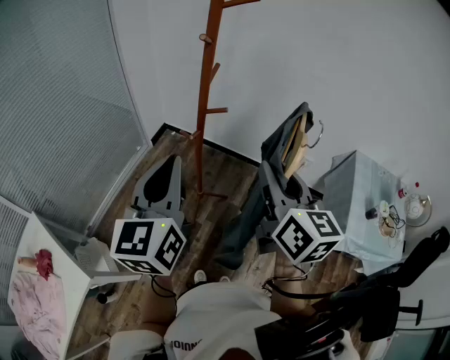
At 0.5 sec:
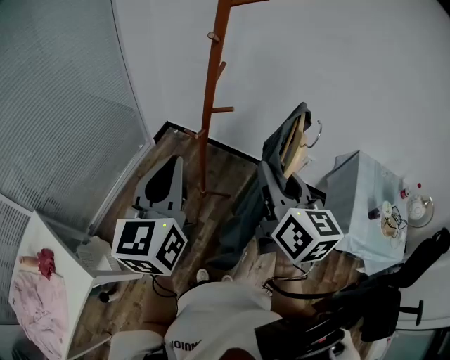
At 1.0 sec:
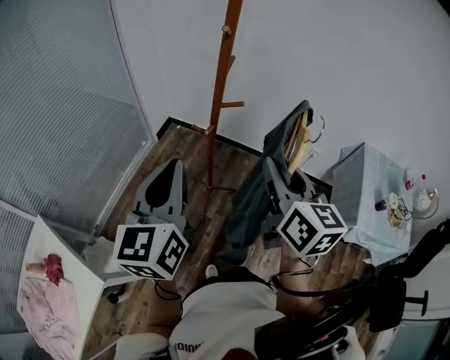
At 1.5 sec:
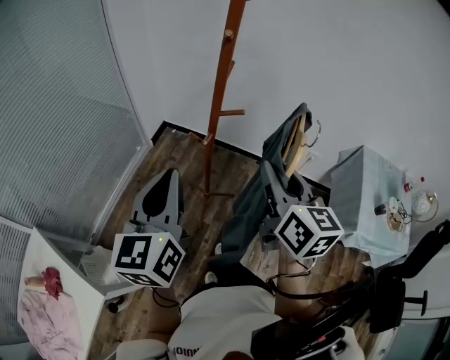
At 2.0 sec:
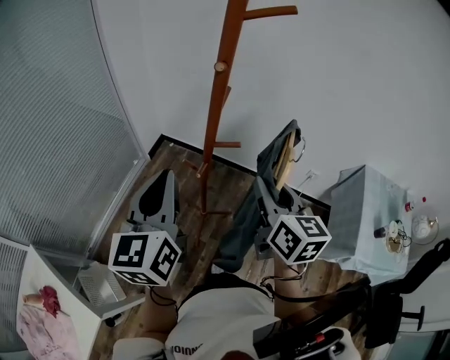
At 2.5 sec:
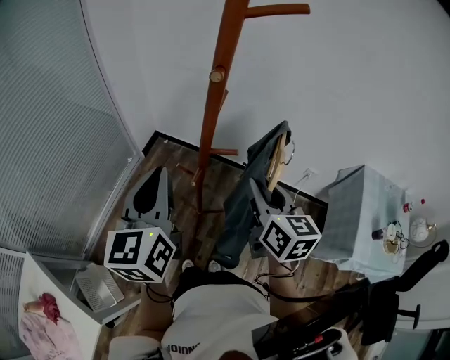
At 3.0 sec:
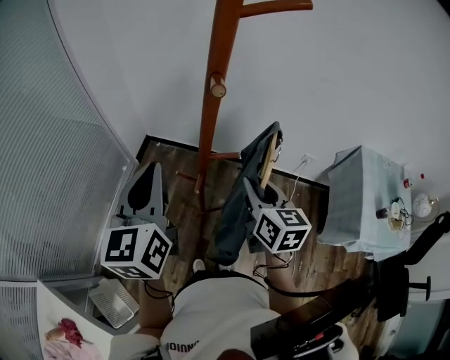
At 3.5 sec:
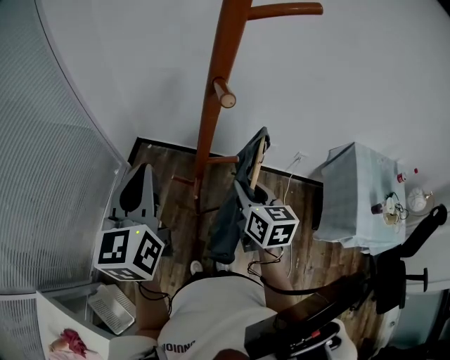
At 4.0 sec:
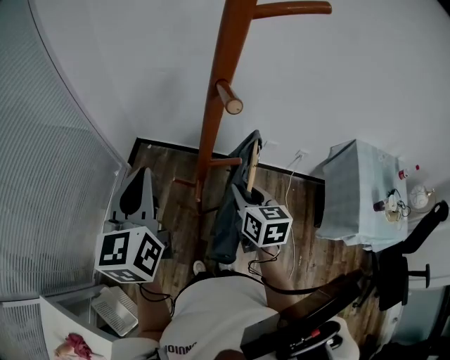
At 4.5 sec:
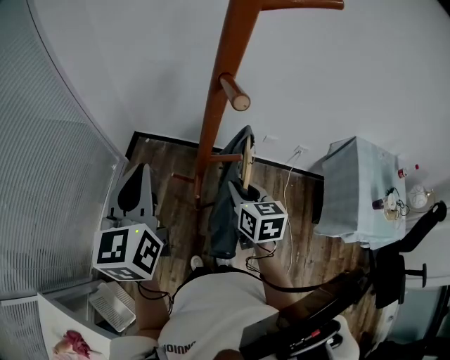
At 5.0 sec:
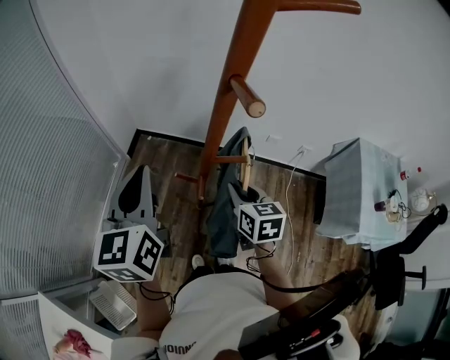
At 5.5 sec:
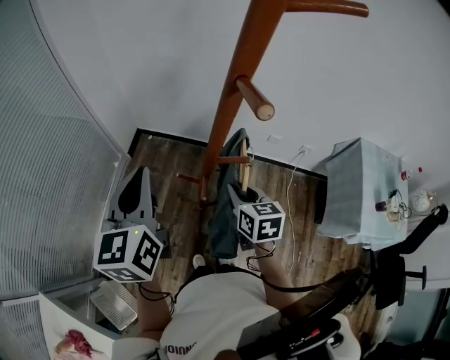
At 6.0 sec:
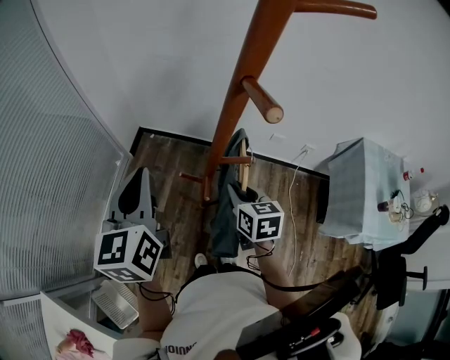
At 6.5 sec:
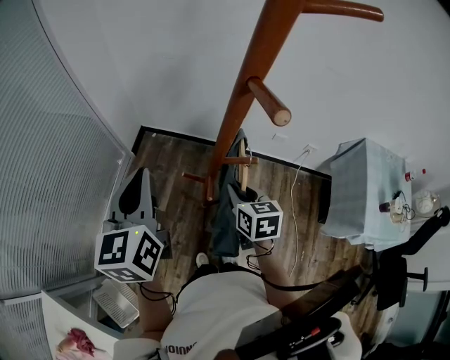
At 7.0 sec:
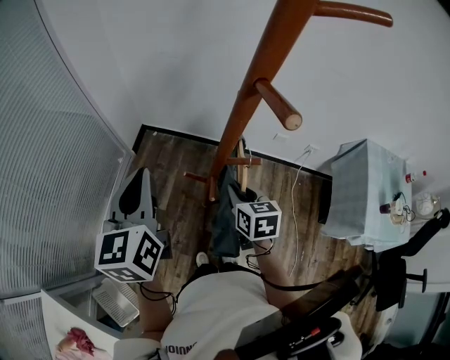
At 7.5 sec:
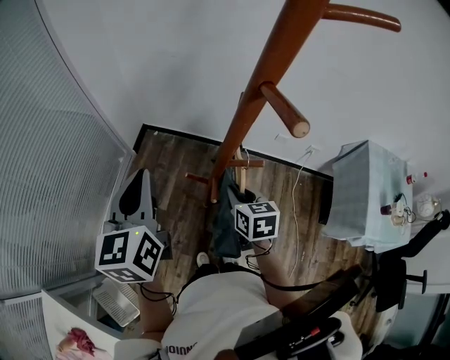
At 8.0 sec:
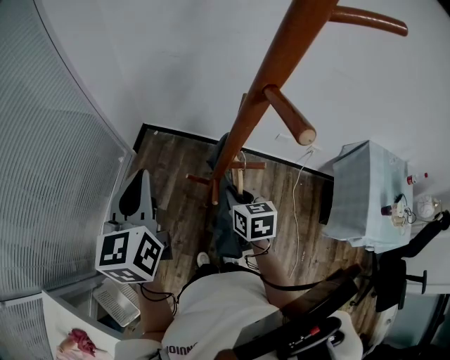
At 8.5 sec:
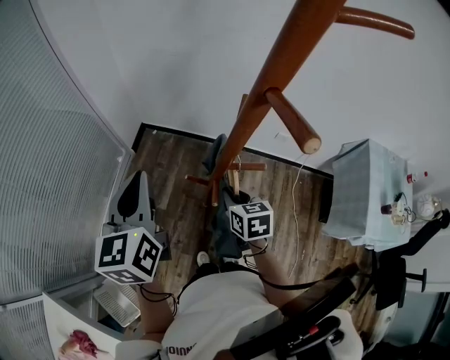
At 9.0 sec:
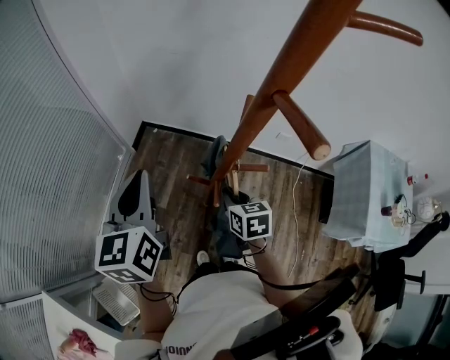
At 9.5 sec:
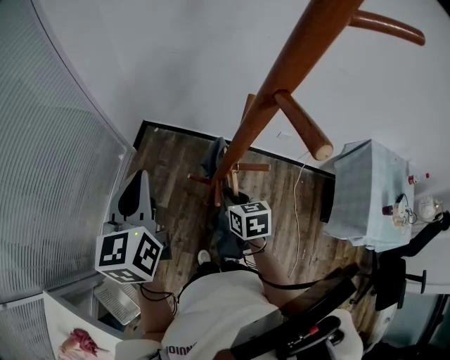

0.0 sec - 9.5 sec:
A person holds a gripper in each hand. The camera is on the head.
0.0 sec - 2.0 sec: The left gripper travels forward by some 10 cm; the right gripper goes about 15 cm forward and downward.
2.0 sec - 4.0 sec: The left gripper goes about 10 cm forward; the right gripper goes approximately 15 cm downward and forward.
4.0 sec - 5.5 sec: There are only small adjustments of the grippers.
5.5 sec - 7.5 sec: The grippers move only a little.
7.5 sec - 9.5 sec: The grippers make only small movements.

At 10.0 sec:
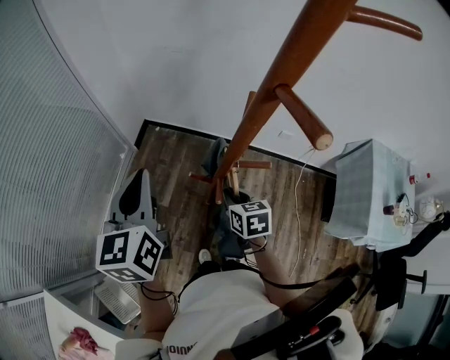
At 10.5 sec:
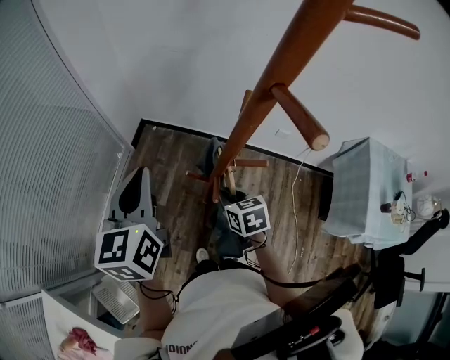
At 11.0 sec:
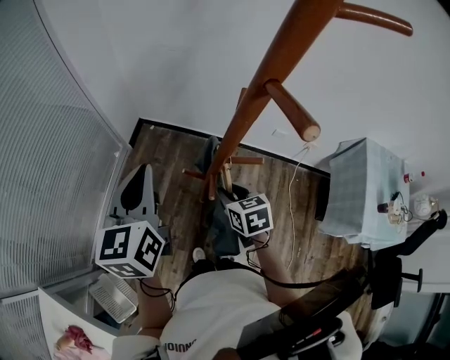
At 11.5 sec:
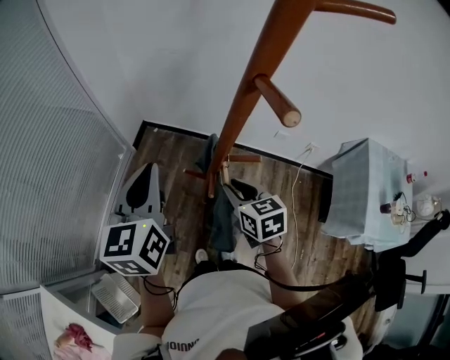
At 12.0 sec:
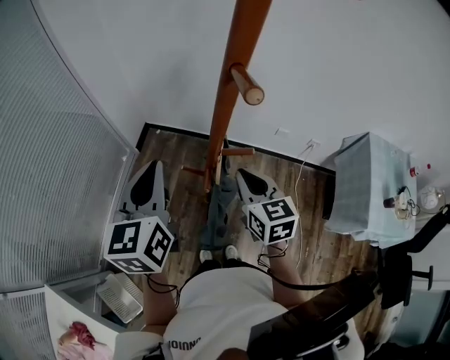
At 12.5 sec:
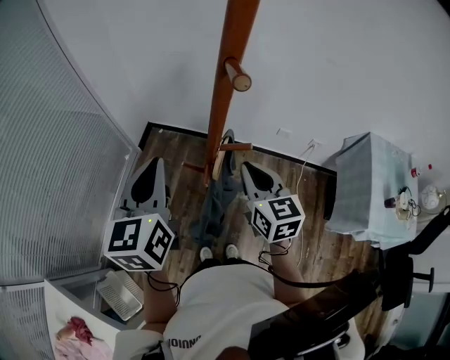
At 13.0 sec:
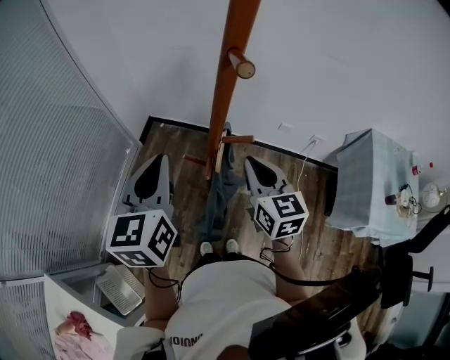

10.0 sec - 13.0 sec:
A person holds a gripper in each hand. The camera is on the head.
10.0 sec - 11.5 sec: The right gripper moves upward, about 5 cm.
11.5 sec - 13.0 sec: The right gripper shifts some 10 cm upward, rotates approximately 20 degrees, and closes its fingers.

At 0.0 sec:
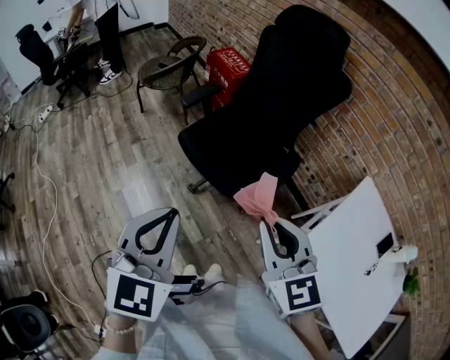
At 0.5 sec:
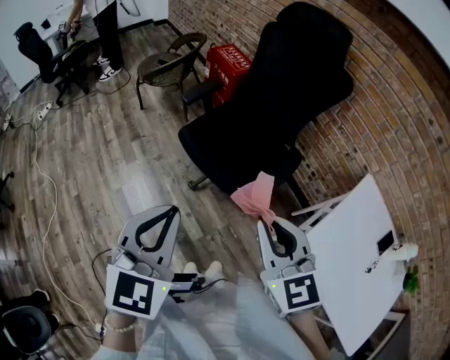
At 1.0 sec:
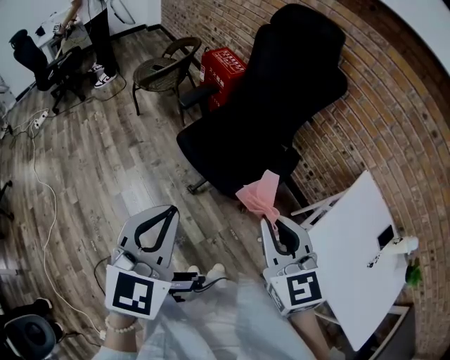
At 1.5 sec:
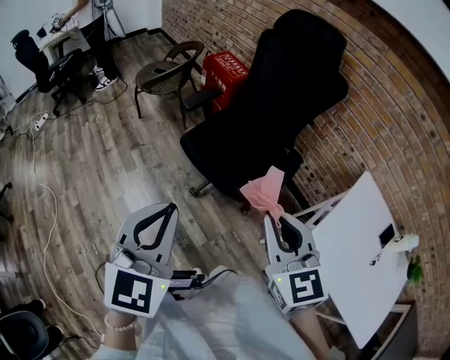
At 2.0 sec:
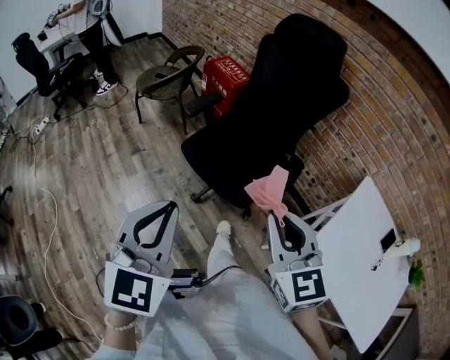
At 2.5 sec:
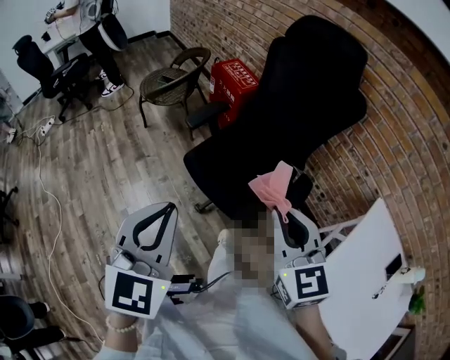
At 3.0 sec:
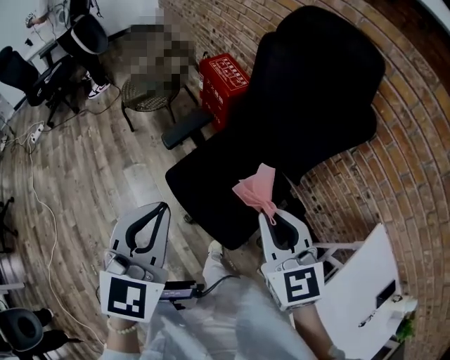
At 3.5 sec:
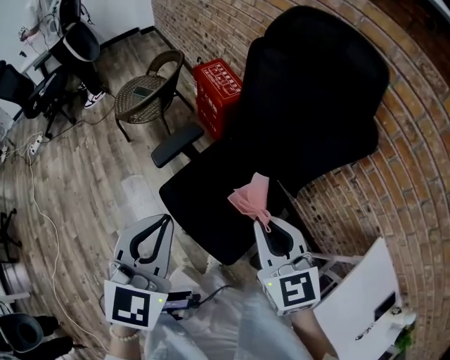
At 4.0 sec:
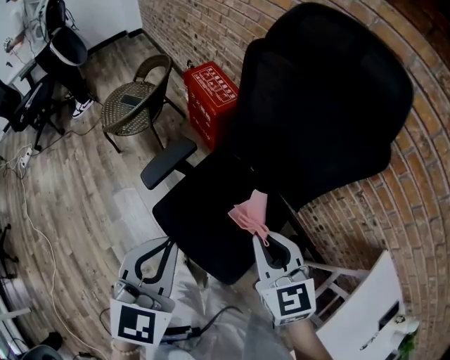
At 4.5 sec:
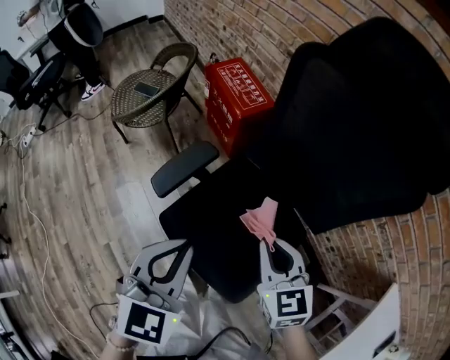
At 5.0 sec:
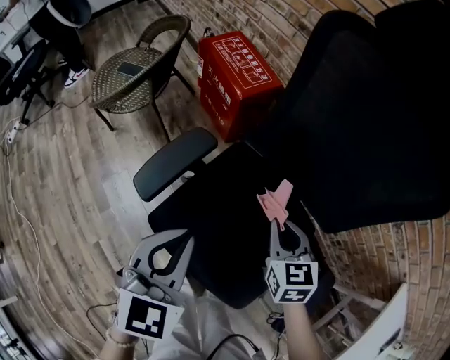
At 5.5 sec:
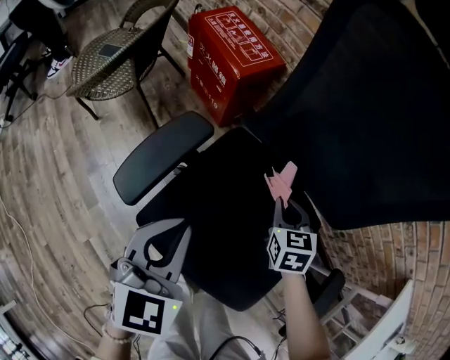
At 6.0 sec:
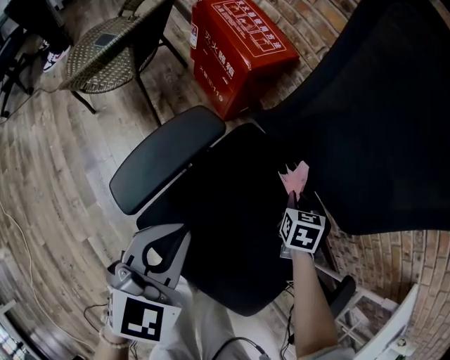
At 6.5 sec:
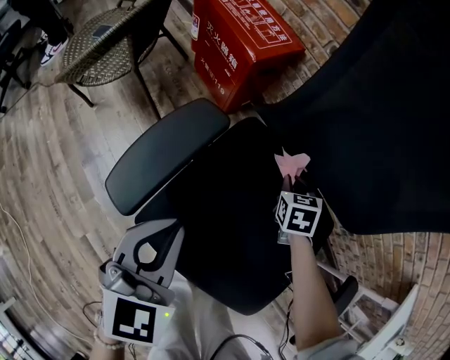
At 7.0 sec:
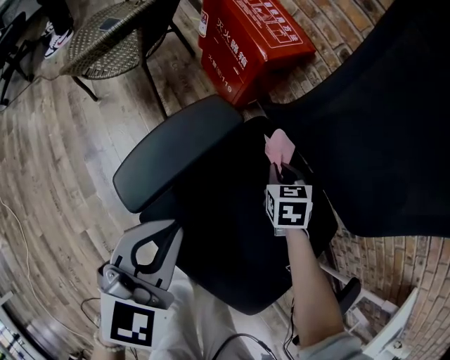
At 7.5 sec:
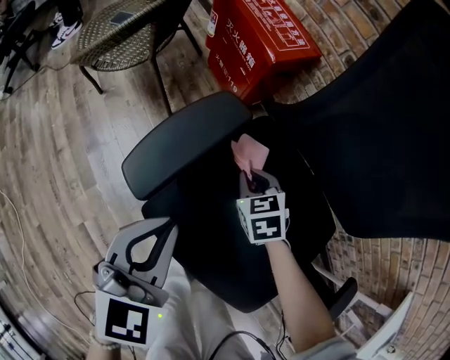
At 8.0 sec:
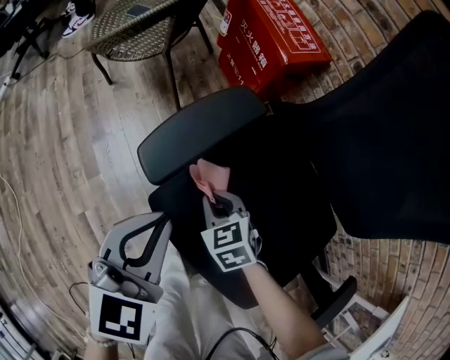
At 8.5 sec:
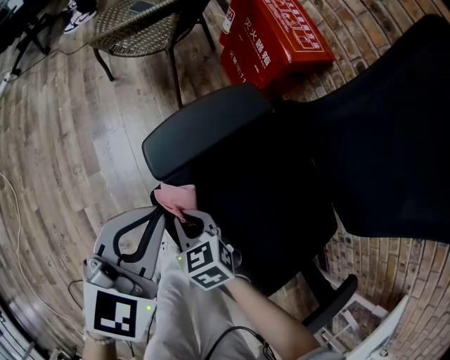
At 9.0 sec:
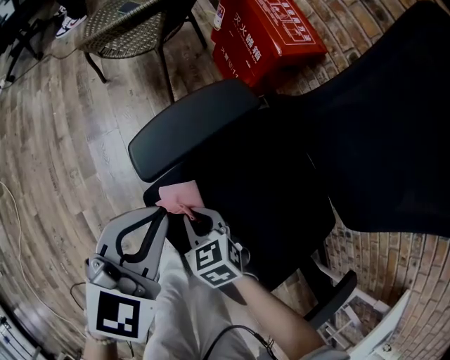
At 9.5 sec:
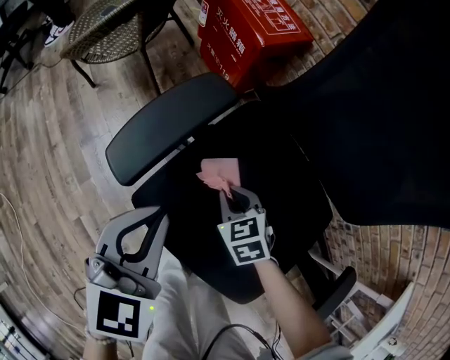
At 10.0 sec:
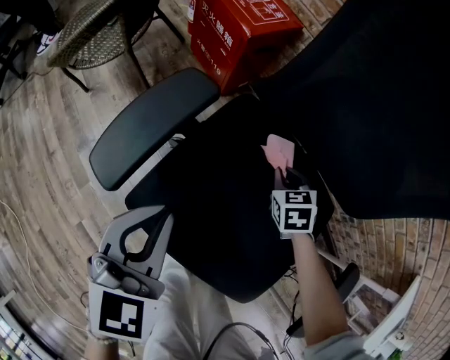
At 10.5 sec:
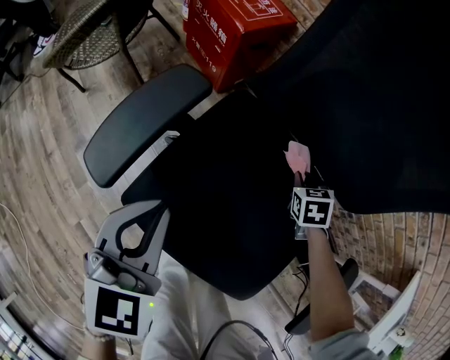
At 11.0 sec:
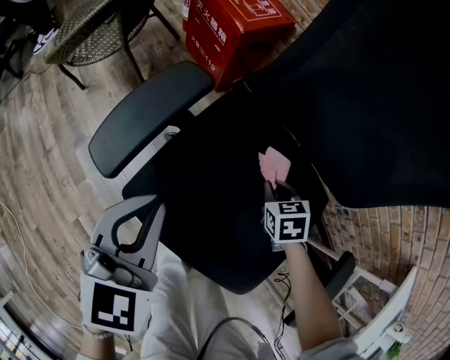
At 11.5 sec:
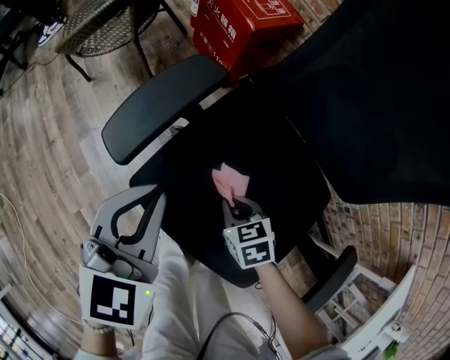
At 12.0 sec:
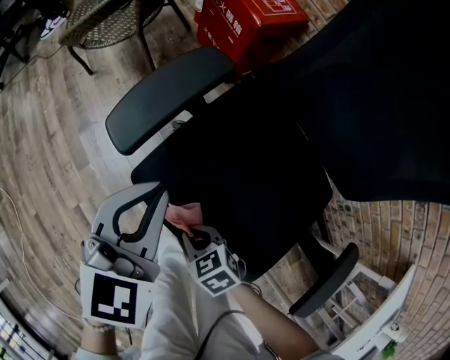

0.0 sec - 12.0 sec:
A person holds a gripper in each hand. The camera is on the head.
0.0 sec - 2.0 sec: The left gripper goes approximately 5 cm to the left.
2.0 sec - 4.0 sec: The two grippers travel together, forward, roughly 40 cm.
4.0 sec - 6.0 sec: The grippers both shift downward and forward by approximately 40 cm. The right gripper angles its fingers downward, by roughly 30 degrees.
6.0 sec - 8.0 sec: The left gripper changes place by roughly 10 cm. The right gripper ends up about 30 cm from where it was, and changes its angle by some 50 degrees.
8.0 sec - 10.0 sec: The left gripper shifts by about 10 cm, while the right gripper ends up about 30 cm from where it was, and rotates approximately 30 degrees.
10.0 sec - 12.0 sec: The right gripper moves some 35 cm, and swivels some 40 degrees.

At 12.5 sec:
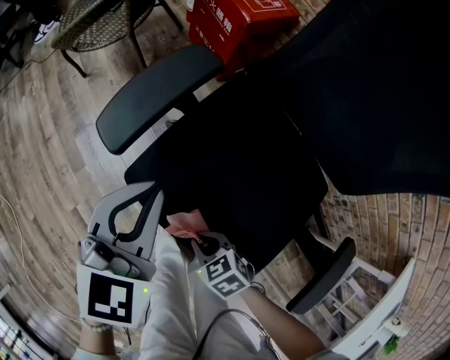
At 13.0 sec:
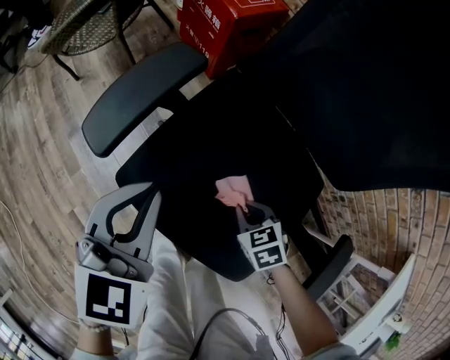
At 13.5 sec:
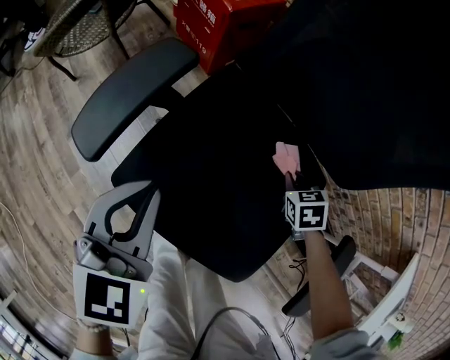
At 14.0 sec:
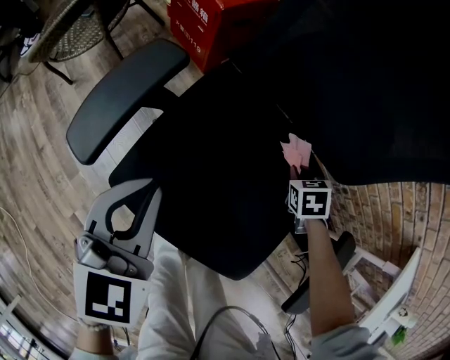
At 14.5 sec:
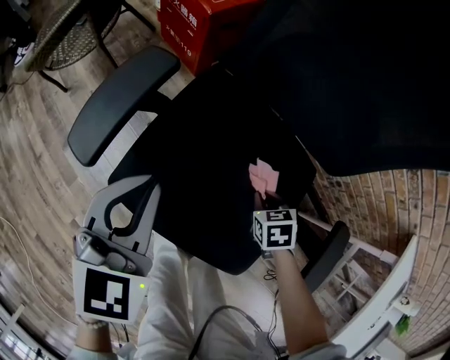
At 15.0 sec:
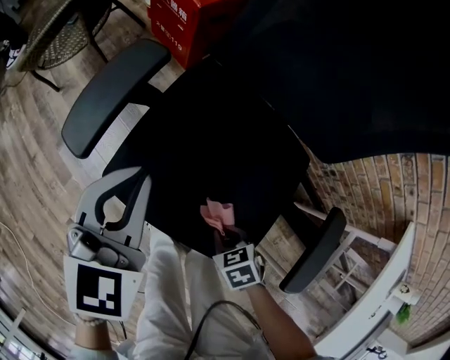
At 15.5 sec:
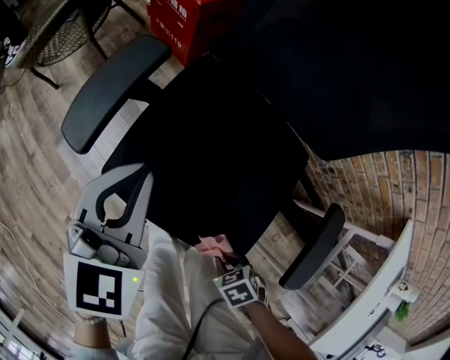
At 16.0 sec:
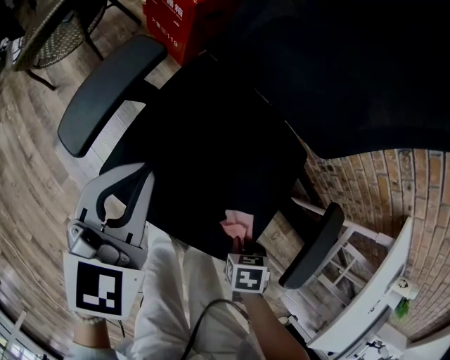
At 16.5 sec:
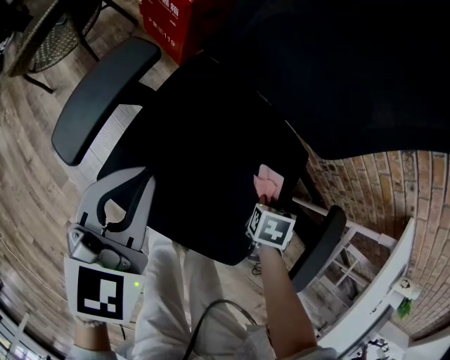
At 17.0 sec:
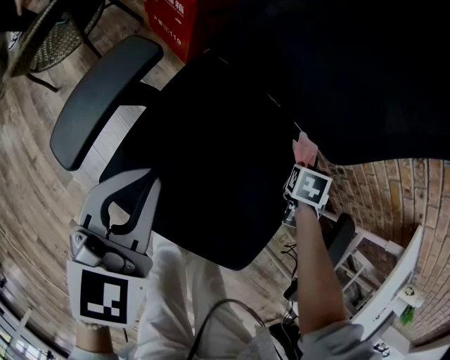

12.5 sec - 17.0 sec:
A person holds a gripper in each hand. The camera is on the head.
12.5 sec - 14.5 sec: The left gripper shifts by approximately 5 cm. The right gripper ends up about 25 cm from where it was, and changes its angle by some 40 degrees.
14.5 sec - 17.0 sec: The right gripper rotates approximately 30 degrees.
